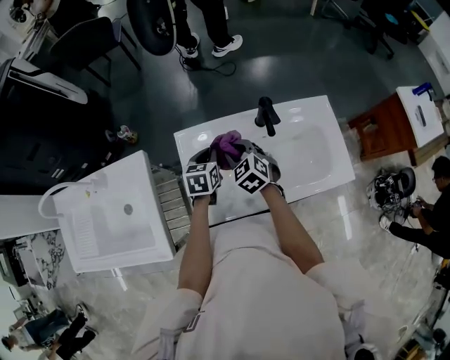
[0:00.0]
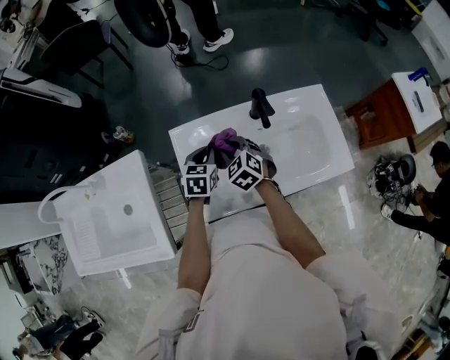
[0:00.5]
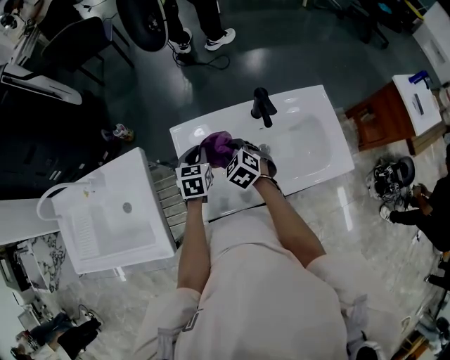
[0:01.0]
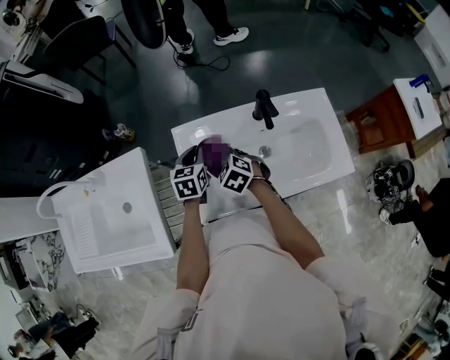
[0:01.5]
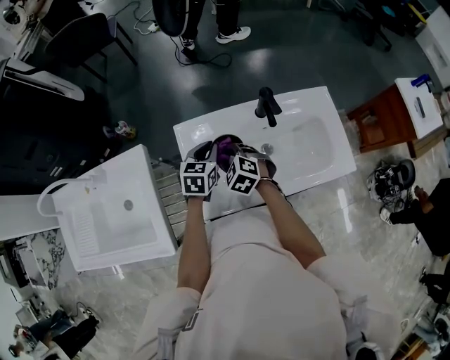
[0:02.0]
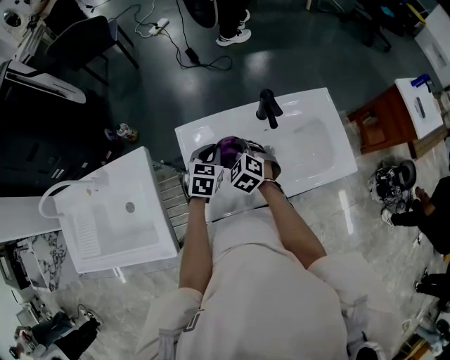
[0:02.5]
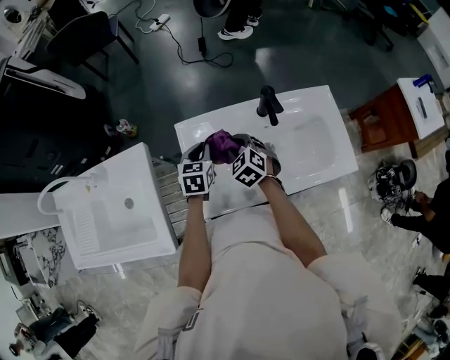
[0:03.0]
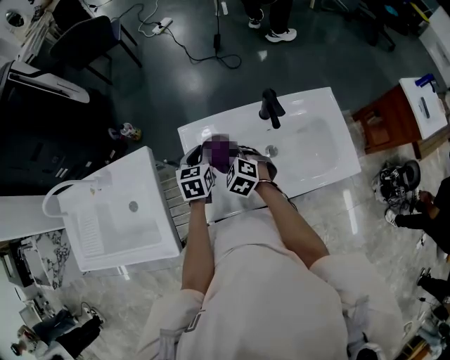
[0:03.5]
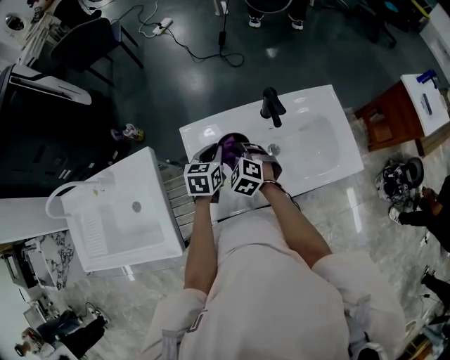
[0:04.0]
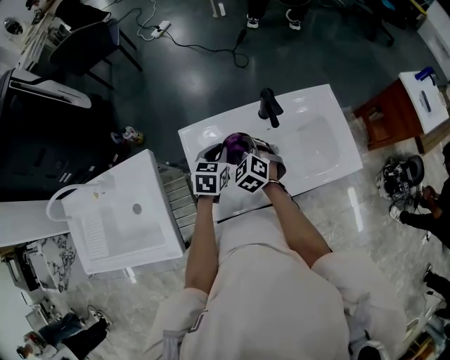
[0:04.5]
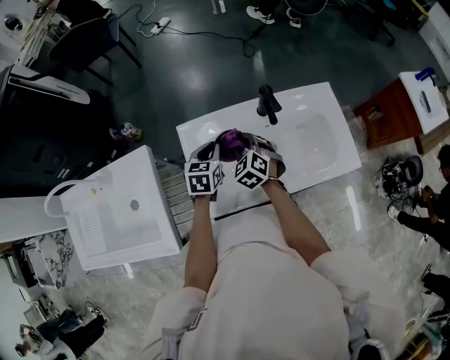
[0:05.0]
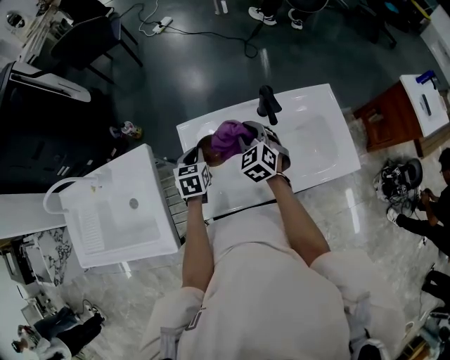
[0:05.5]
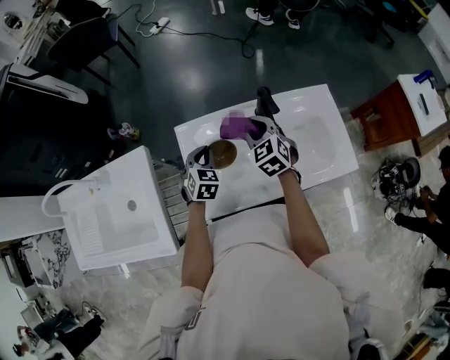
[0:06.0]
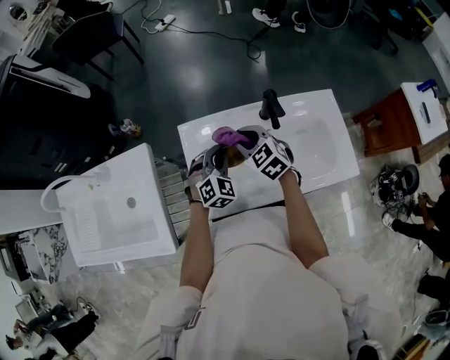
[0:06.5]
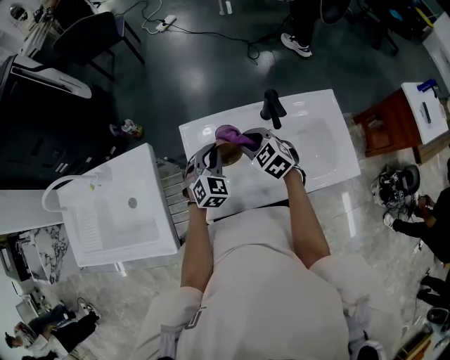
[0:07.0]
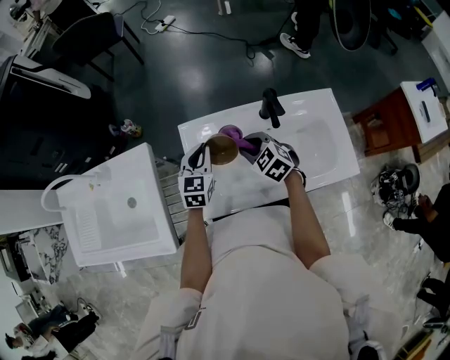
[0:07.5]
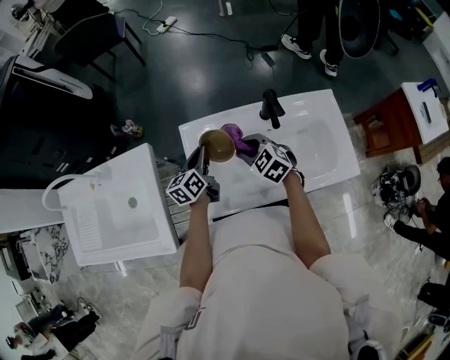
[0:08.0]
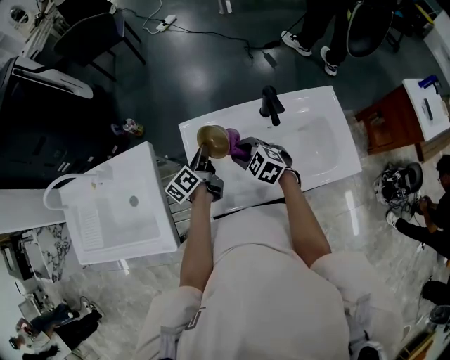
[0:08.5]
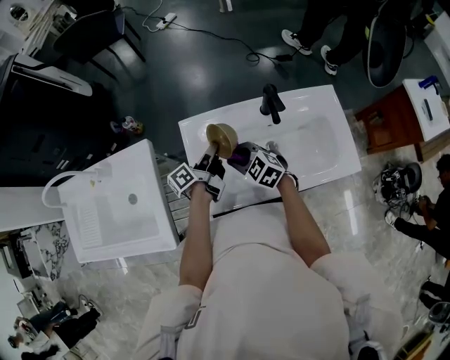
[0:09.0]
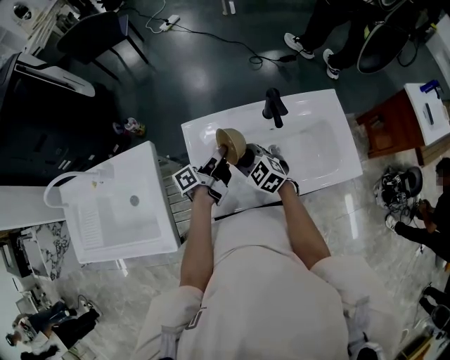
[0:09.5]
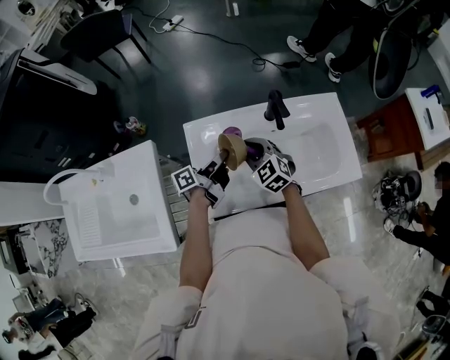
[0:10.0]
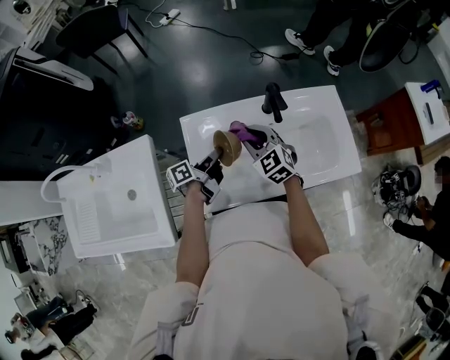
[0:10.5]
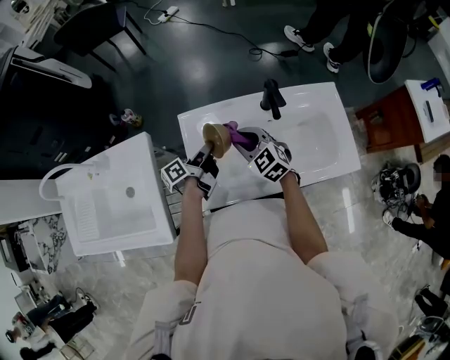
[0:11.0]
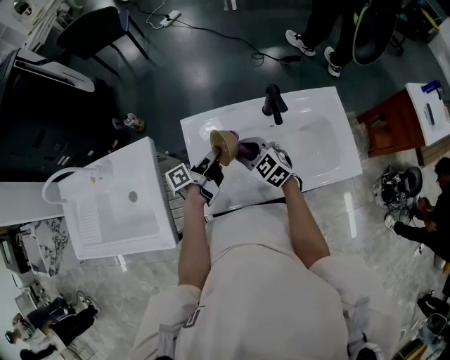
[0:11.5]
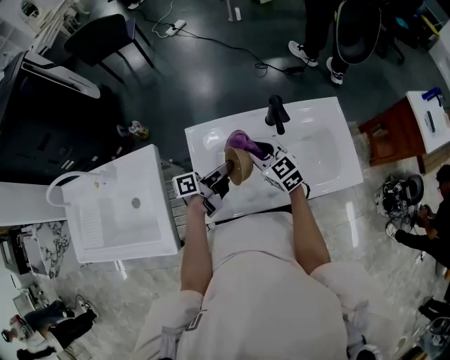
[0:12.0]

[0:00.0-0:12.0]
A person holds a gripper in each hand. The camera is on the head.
0:00.0 to 0:02.0: The right gripper moves some 5 cm.
0:02.0 to 0:04.0: The grippers make only small movements.
0:04.0 to 0:06.0: The left gripper travels to the left and back again, approximately 5 cm each way, and changes its angle by some 30 degrees. The right gripper moves to the right, upward and forward, roughly 15 cm, and rotates approximately 20 degrees.
0:06.0 to 0:08.0: The left gripper twists roughly 50 degrees counterclockwise, seen from behind, while the right gripper travels to the left by about 5 cm, and swivels some 20 degrees.
0:08.0 to 0:10.0: The left gripper is displaced to the right by some 5 cm, and twists approximately 40 degrees counterclockwise, seen from behind.
0:10.0 to 0:12.0: The grippers make only small movements.

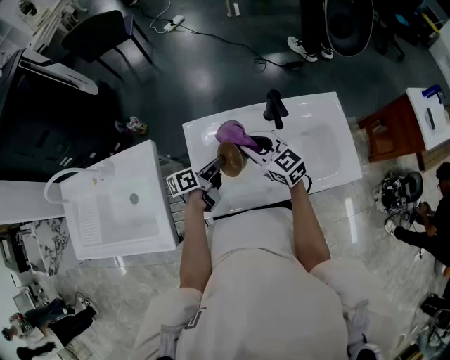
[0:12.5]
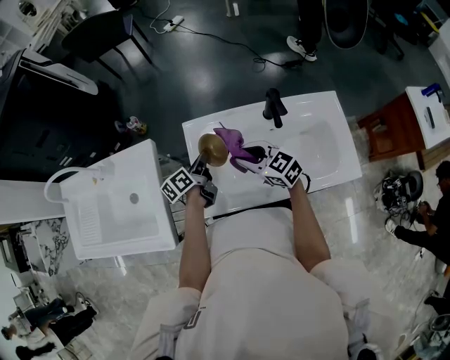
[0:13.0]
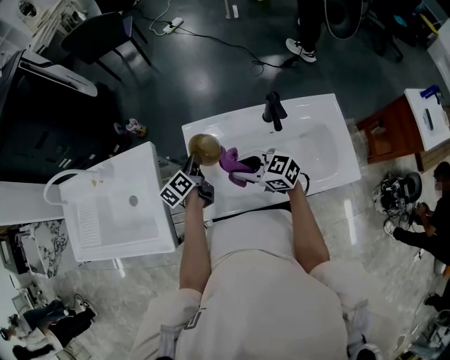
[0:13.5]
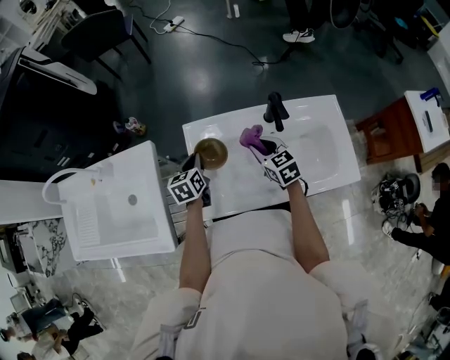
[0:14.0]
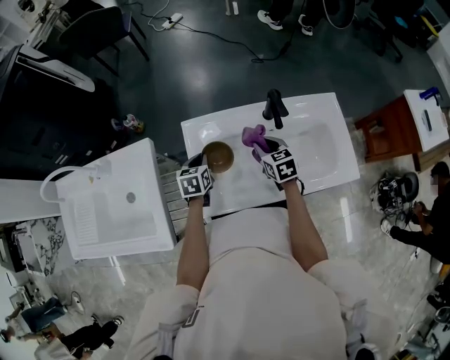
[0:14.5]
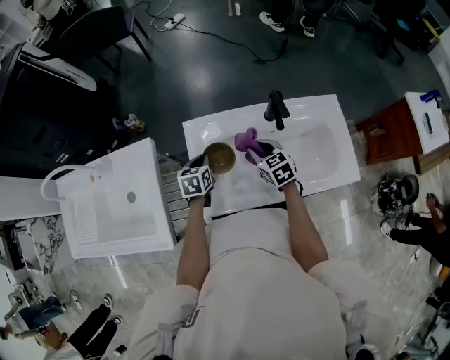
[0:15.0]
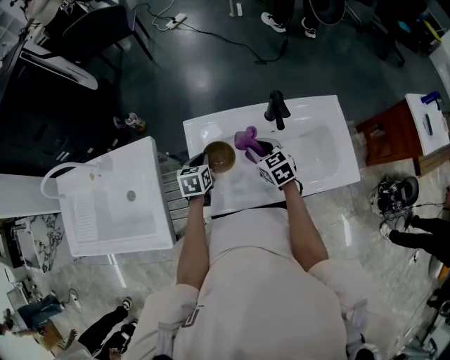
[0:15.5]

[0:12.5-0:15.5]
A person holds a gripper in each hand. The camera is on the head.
0:12.5 to 0:14.0: The left gripper changes place by roughly 10 cm, and swivels about 50 degrees. The right gripper shifts roughly 5 cm downward, and swivels roughly 20 degrees.
0:14.0 to 0:15.5: There are only small adjustments of the grippers.

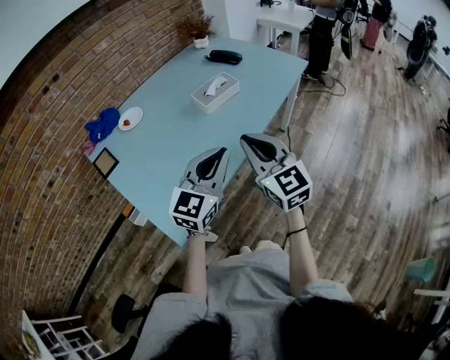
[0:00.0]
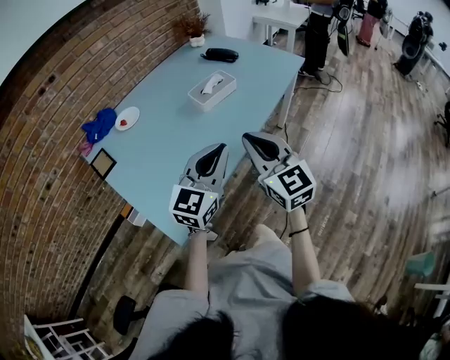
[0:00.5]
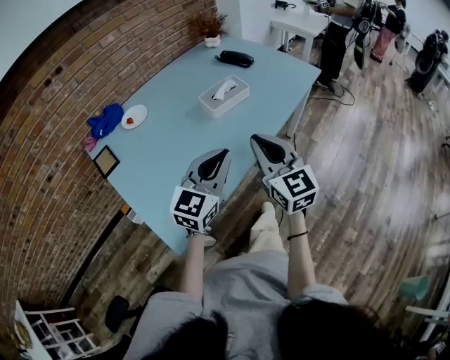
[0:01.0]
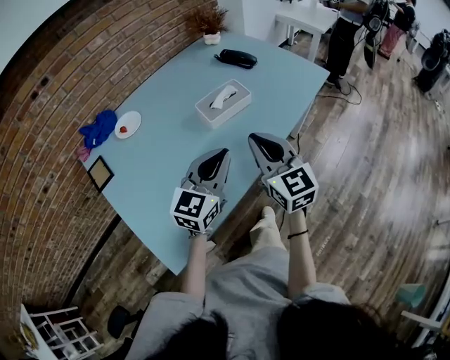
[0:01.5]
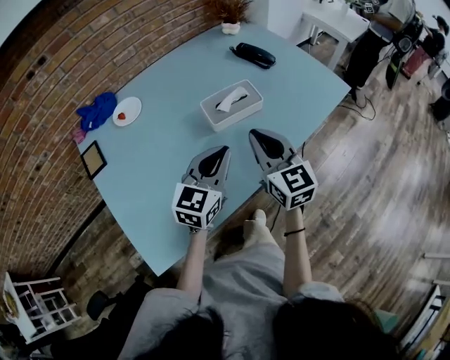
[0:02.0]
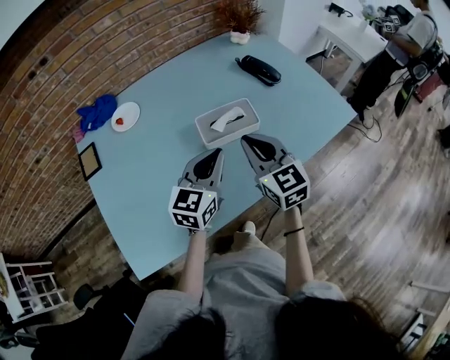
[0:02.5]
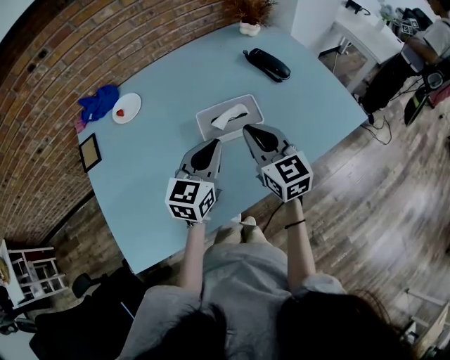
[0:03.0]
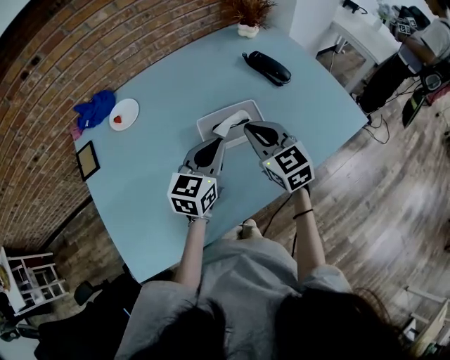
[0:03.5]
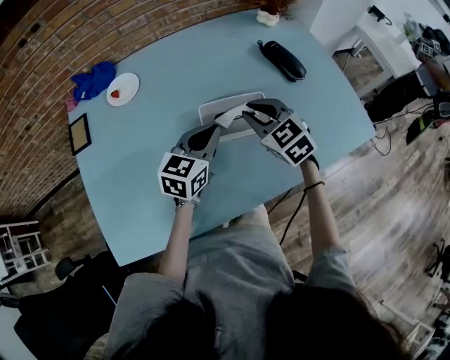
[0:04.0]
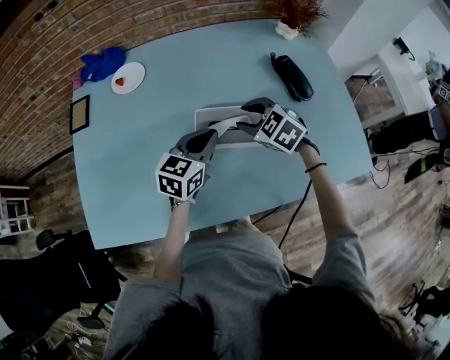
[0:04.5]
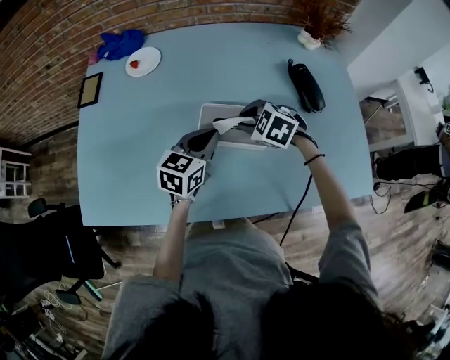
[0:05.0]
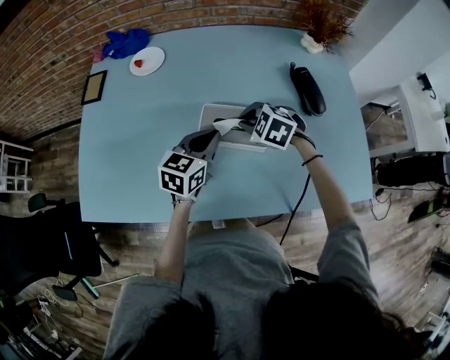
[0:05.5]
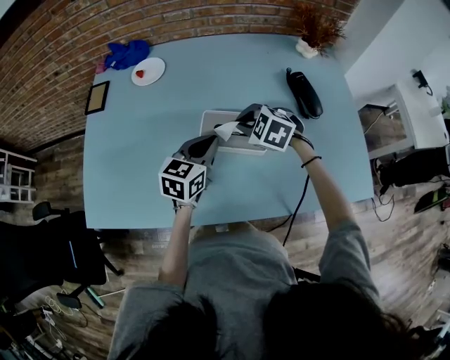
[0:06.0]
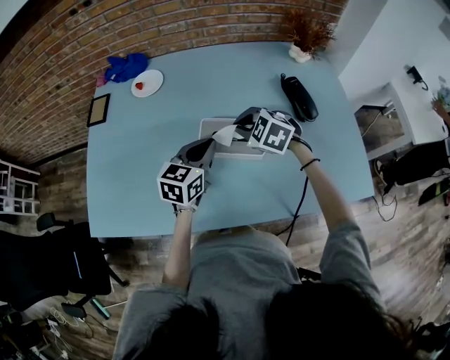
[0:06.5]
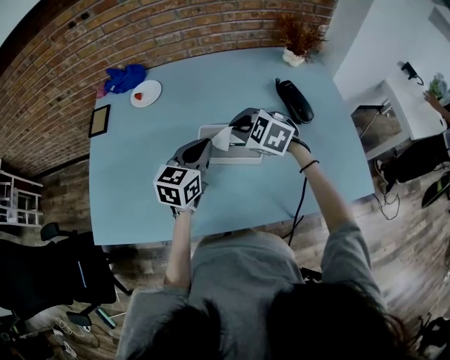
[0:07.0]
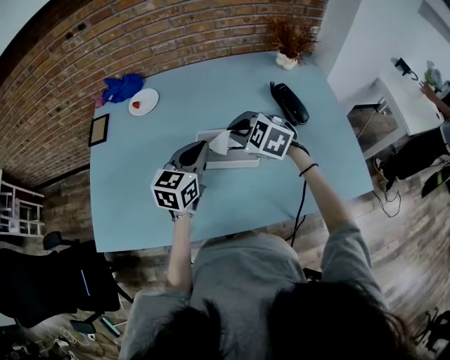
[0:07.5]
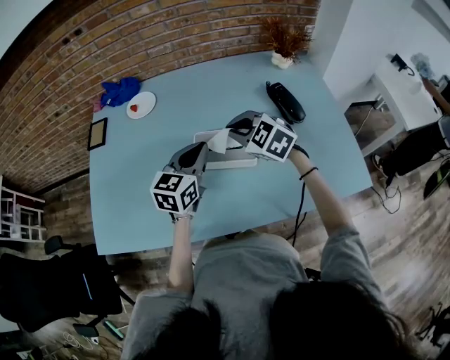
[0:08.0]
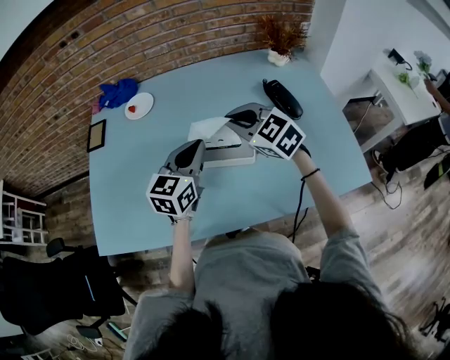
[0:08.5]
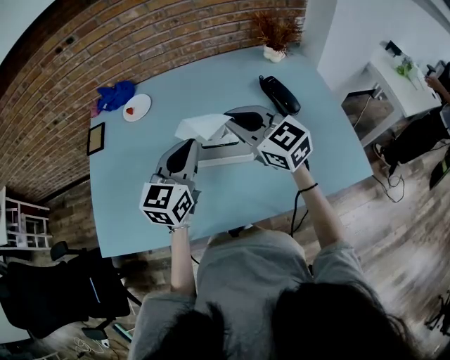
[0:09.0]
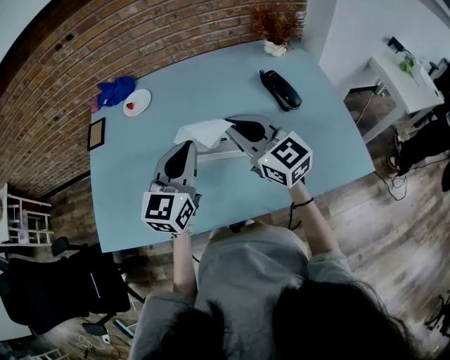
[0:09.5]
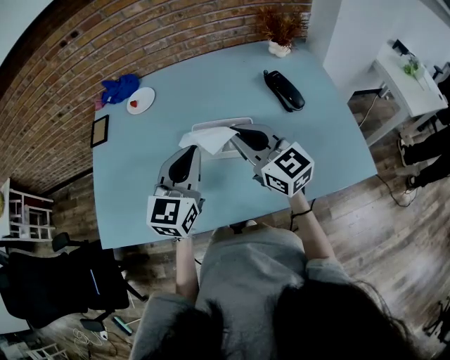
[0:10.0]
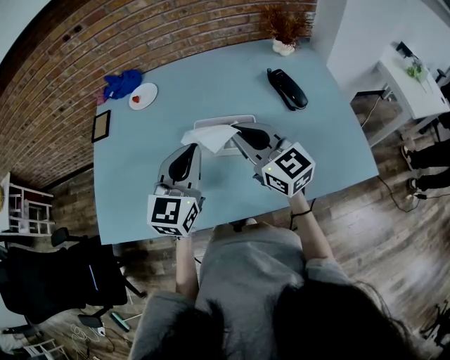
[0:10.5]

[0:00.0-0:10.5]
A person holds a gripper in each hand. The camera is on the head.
0:00.0 to 0:02.0: Both grippers move forward, some 25 cm.
0:02.0 to 0:04.0: The grippers both shift forward by some 20 cm. The right gripper rotates some 40 degrees.
0:04.0 to 0:06.5: The right gripper rotates approximately 40 degrees, and opens, then closes once more.
0:06.5 to 0:08.5: The right gripper heads upward, covering roughly 10 cm, and rotates roughly 30 degrees, while the left gripper heads upward, covering about 5 cm.
0:08.5 to 0:10.5: The two grippers go about 5 cm backward. The right gripper swivels some 30 degrees.

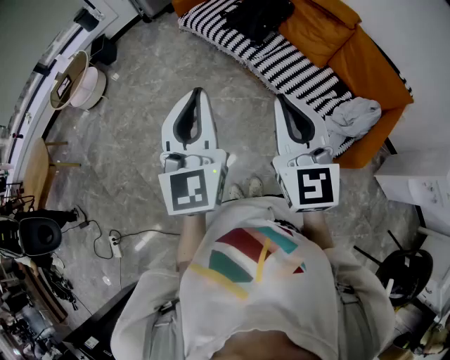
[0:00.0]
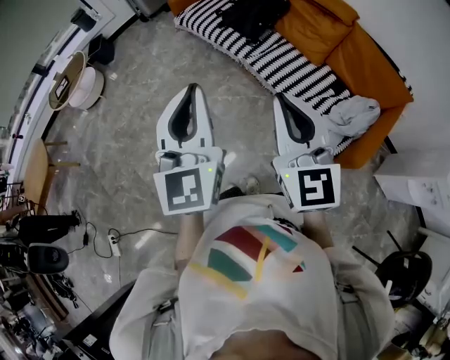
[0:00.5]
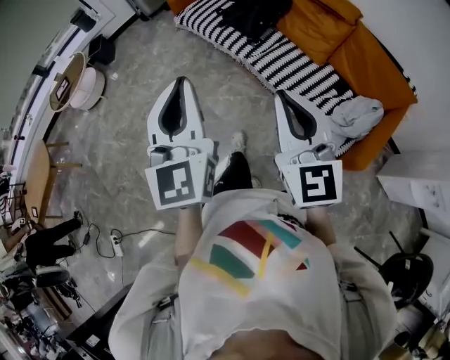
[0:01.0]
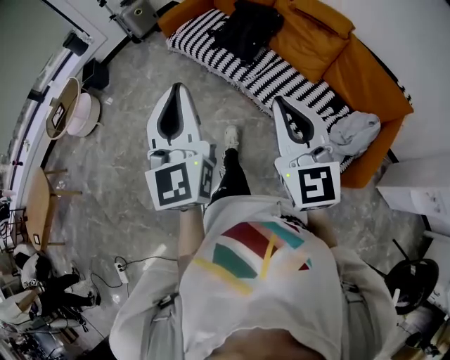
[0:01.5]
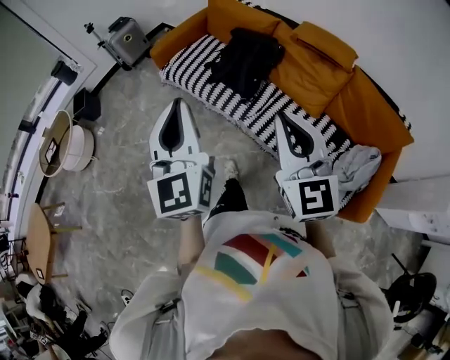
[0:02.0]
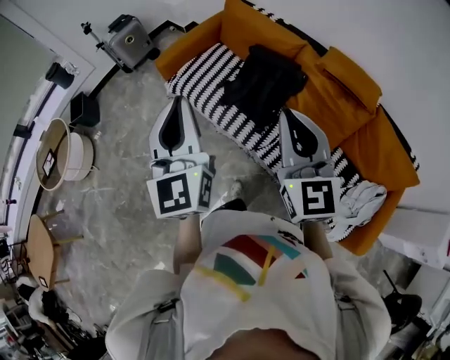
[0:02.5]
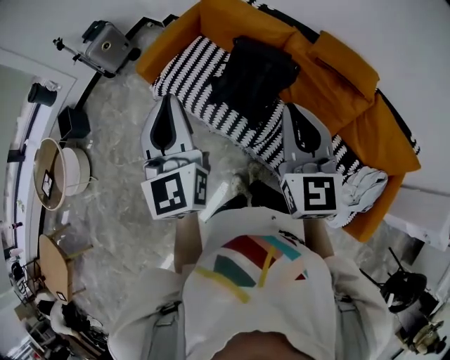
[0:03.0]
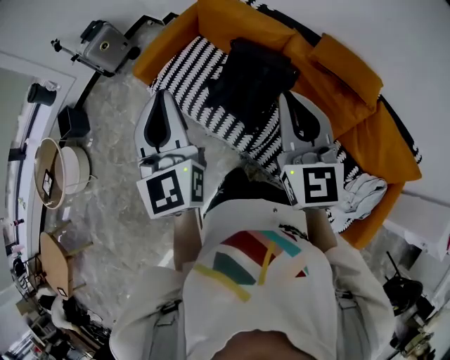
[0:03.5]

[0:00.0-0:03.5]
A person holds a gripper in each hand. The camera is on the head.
0:00.0 to 0:02.0: Both grippers travel together forward, approximately 30 cm.
0:02.0 to 0:03.5: The two grippers go roughly 35 cm forward.
